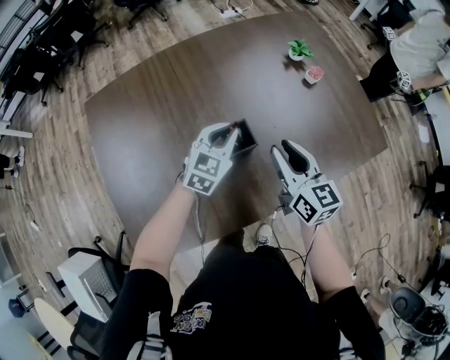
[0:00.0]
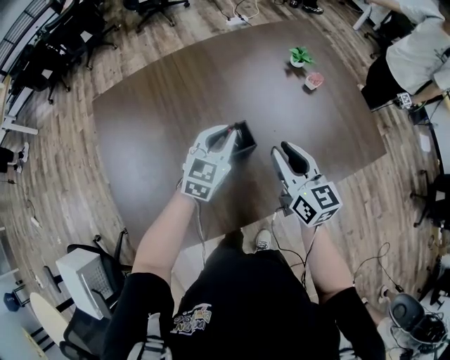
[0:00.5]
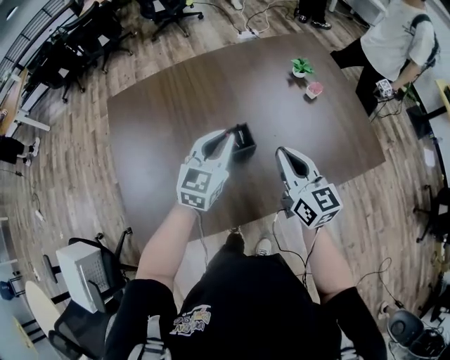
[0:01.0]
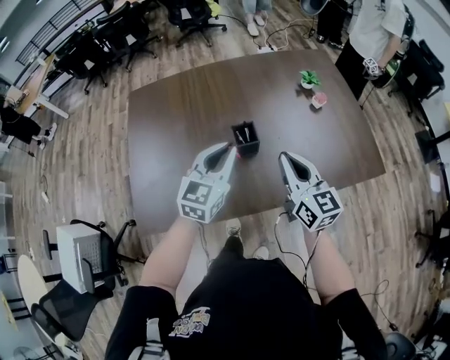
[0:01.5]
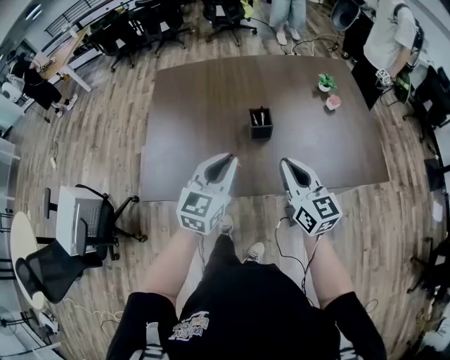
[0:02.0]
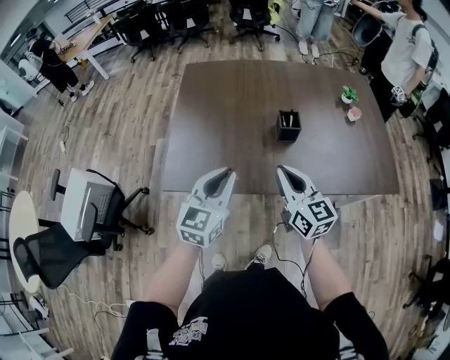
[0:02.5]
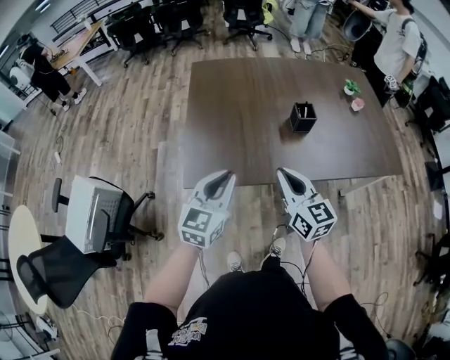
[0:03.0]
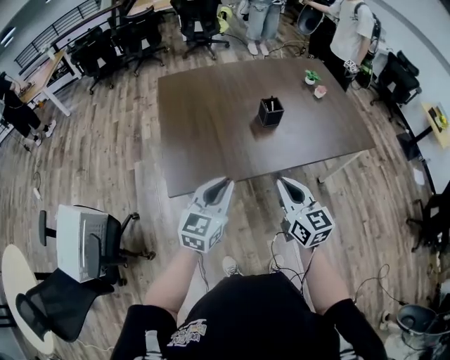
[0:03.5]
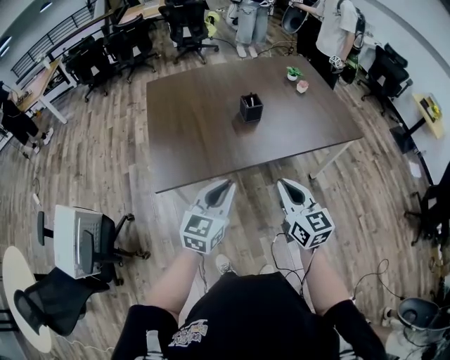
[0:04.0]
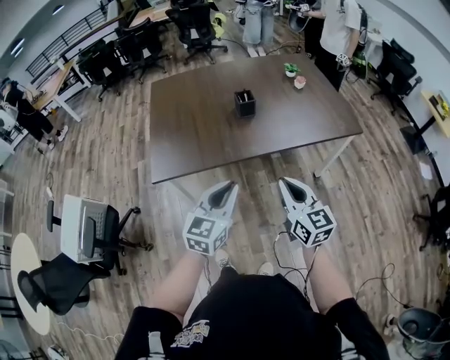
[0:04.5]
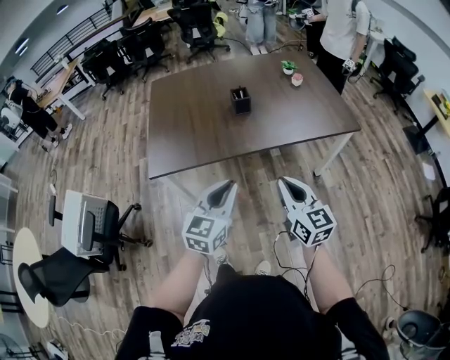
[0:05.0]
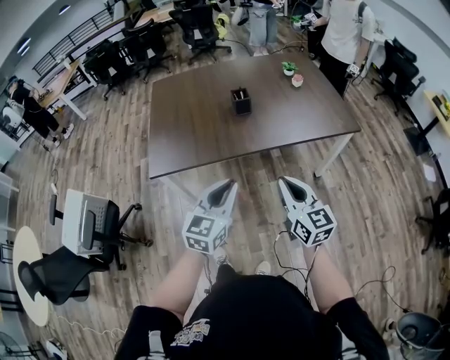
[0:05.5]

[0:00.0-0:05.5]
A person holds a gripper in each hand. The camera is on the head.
0:00.0 to 0:02.0: The left gripper travels backward and upward by roughly 30 cm, and swivels roughly 30 degrees. The right gripper is displaced backward and upward by roughly 20 cm, turns by approximately 20 degrees, and closes.
0:02.0 to 0:03.5: Both grippers move to the left and backward, about 25 cm.
0:03.5 to 0:05.5: The grippers both shift to the right and backward by roughly 25 cm.

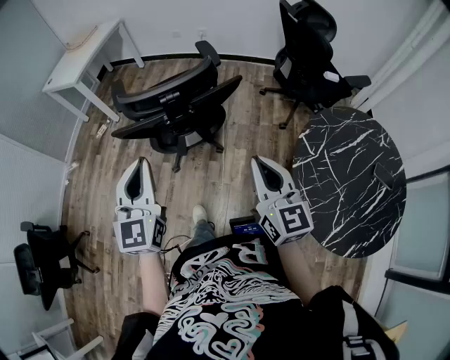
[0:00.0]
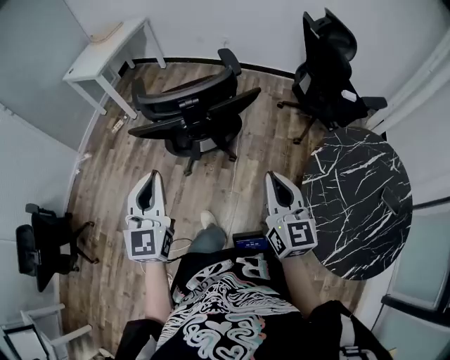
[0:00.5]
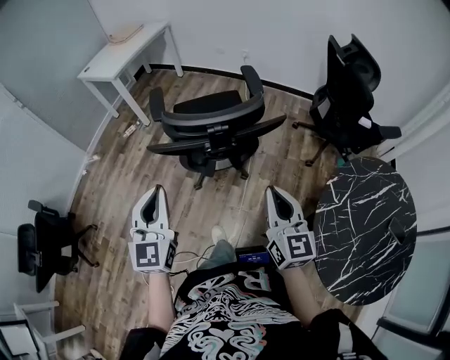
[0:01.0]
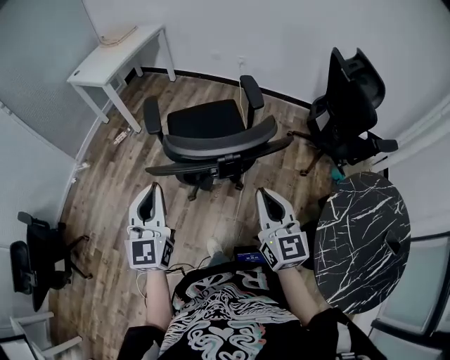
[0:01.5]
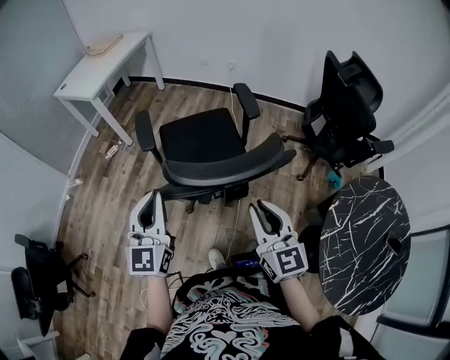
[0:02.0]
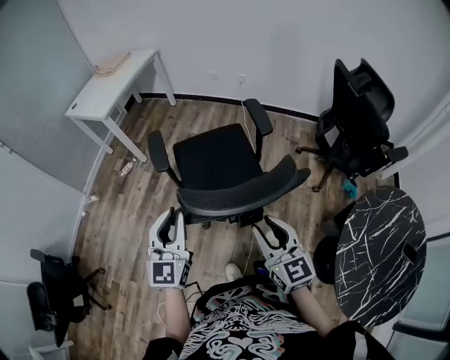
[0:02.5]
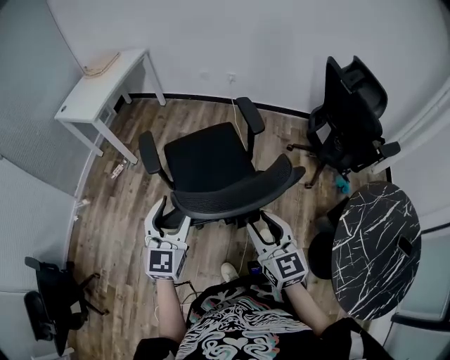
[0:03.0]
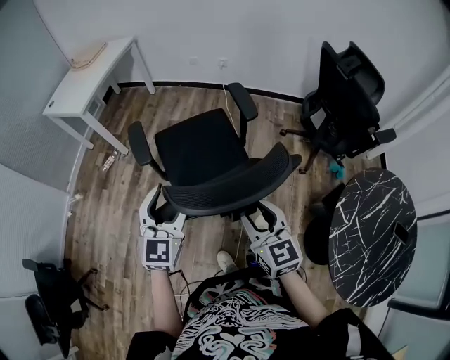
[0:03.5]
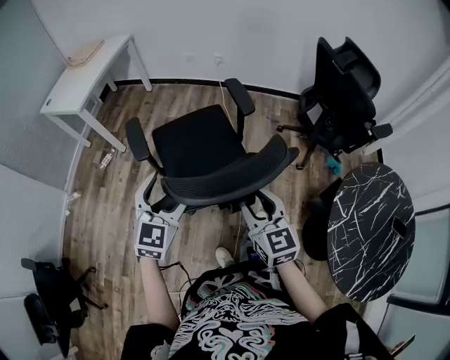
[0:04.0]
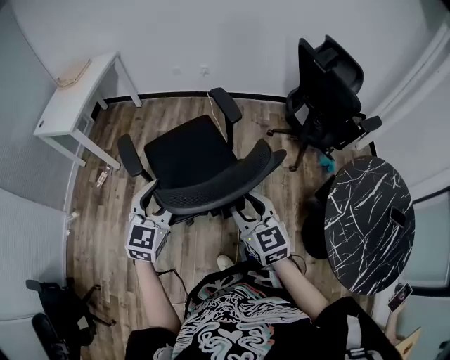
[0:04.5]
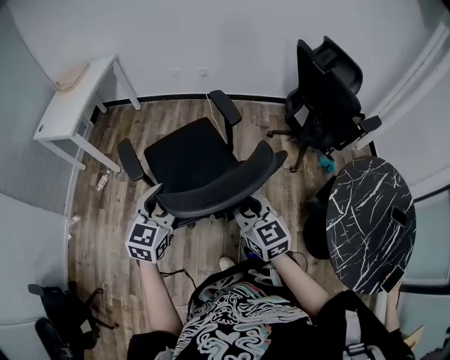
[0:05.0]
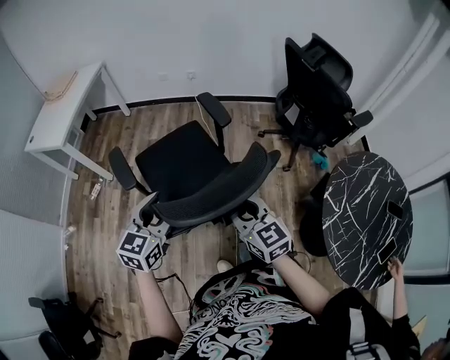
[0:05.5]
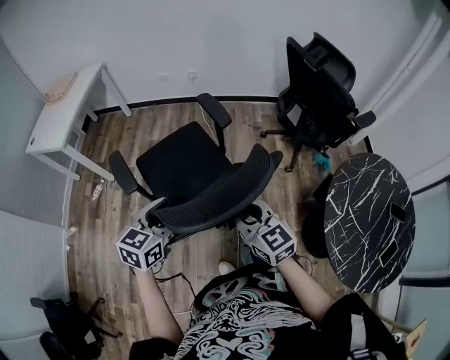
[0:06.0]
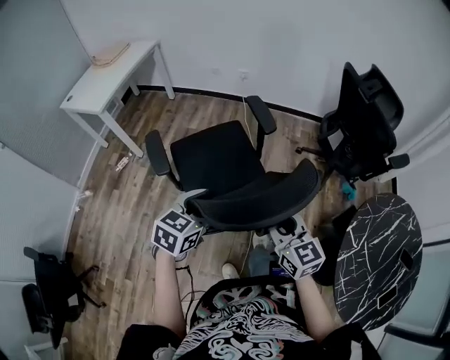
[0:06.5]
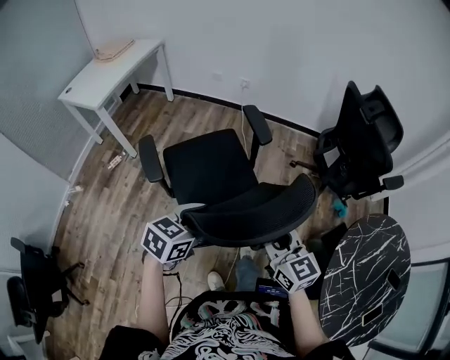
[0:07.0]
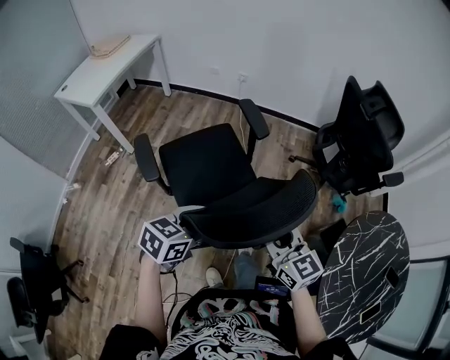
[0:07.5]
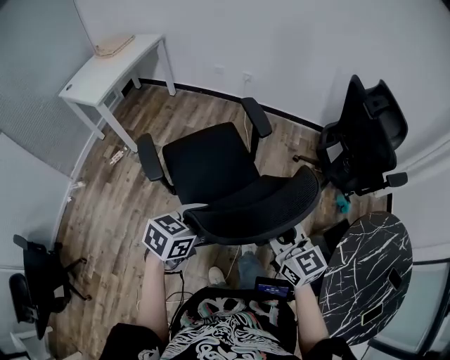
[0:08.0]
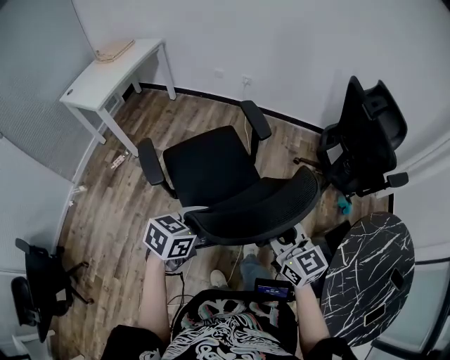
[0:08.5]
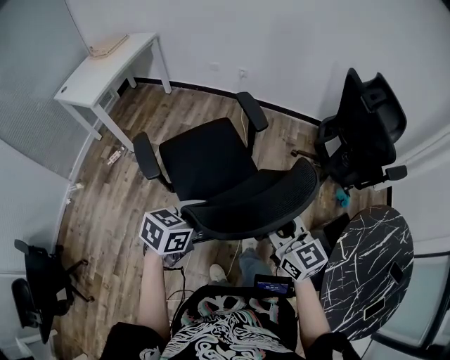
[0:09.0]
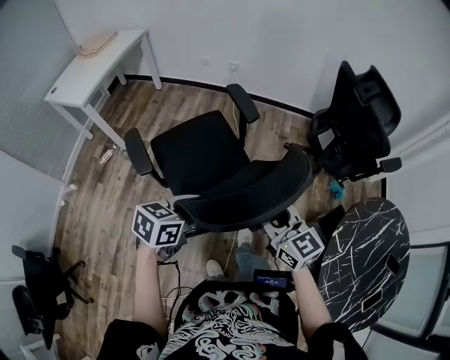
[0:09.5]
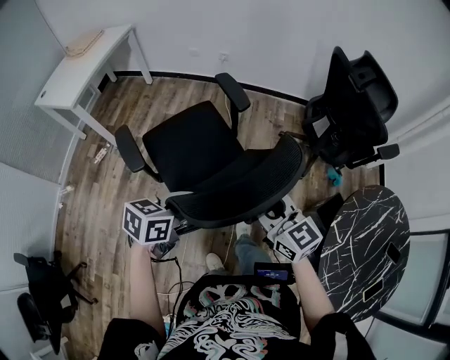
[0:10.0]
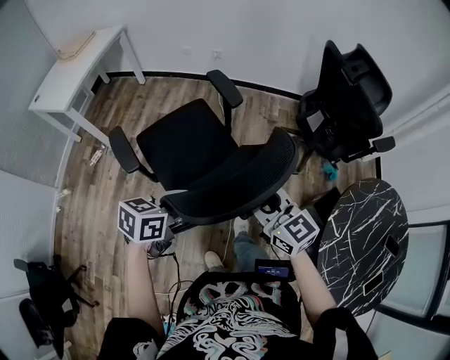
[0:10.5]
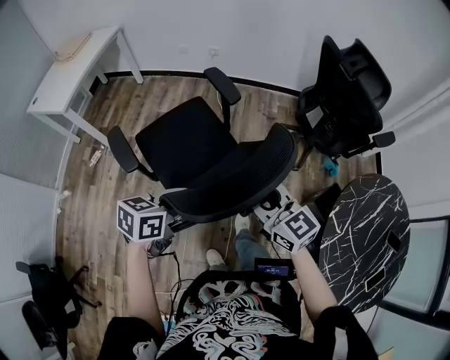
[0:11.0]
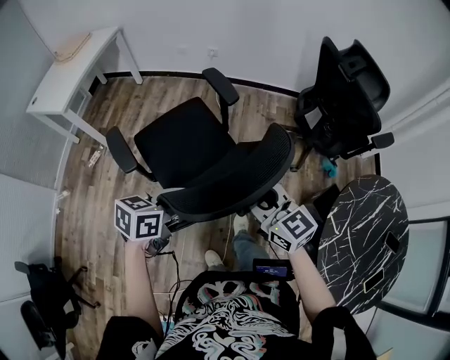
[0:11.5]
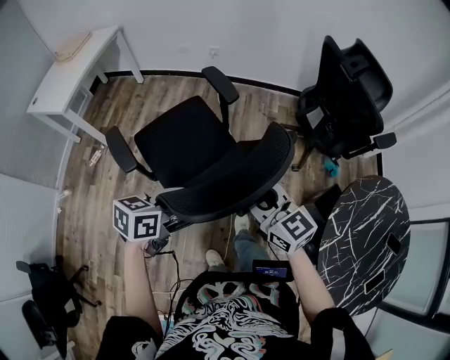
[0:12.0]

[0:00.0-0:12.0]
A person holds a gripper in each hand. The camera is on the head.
0:00.0 to 0:02.0: The grippers both shift forward and to the left by roughly 20 cm.
0:02.0 to 0:04.0: The left gripper travels forward and downward by about 10 cm, swivels roughly 30 degrees, and opens; the right gripper moves forward, approximately 5 cm.
0:04.0 to 0:06.0: The left gripper changes place by roughly 5 cm, and swivels roughly 30 degrees.
0:06.0 to 0:08.0: The left gripper shifts by approximately 5 cm.
0:08.0 to 0:12.0: There are only small adjustments of the grippers.

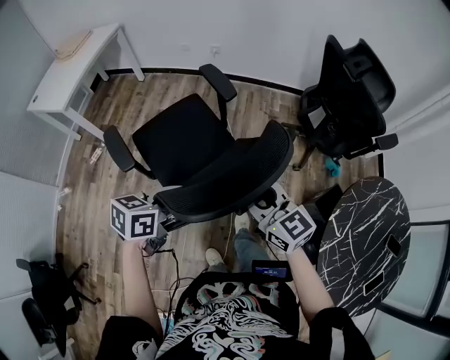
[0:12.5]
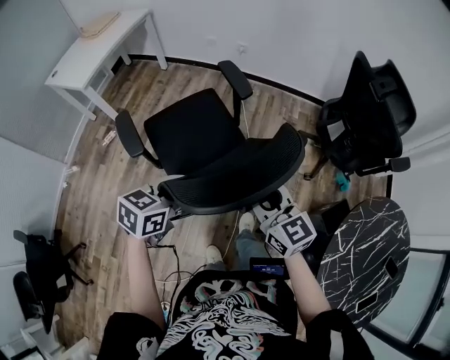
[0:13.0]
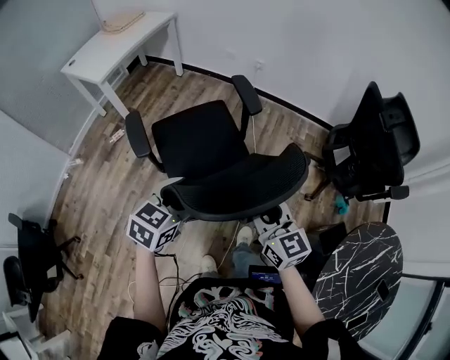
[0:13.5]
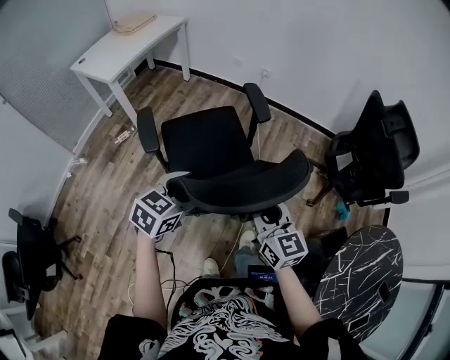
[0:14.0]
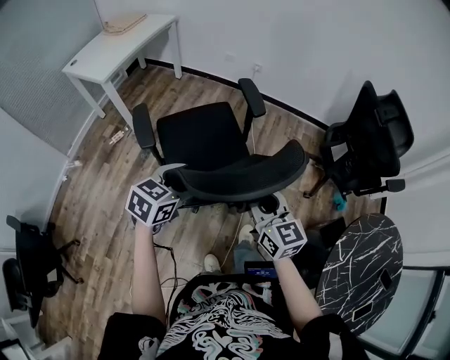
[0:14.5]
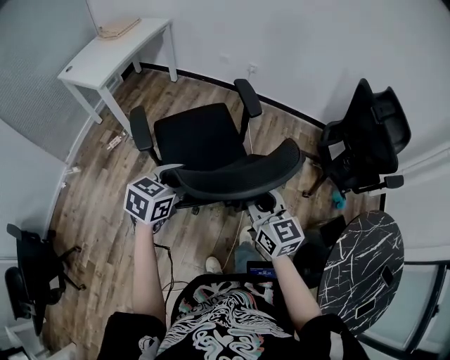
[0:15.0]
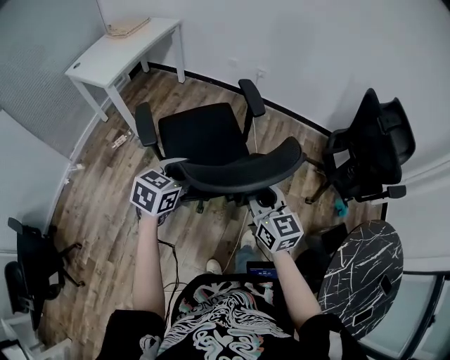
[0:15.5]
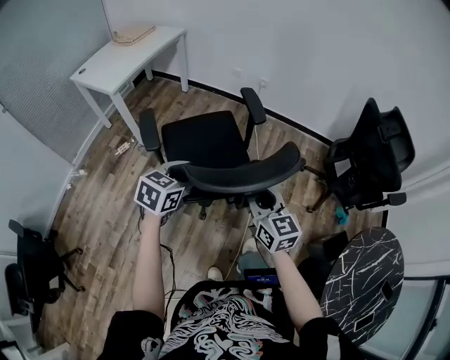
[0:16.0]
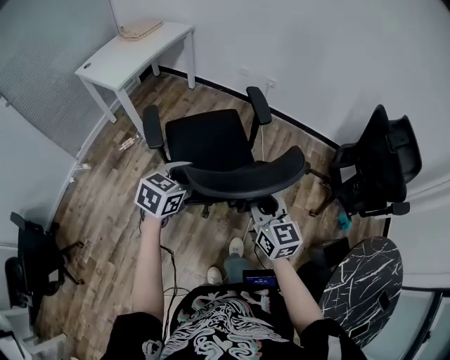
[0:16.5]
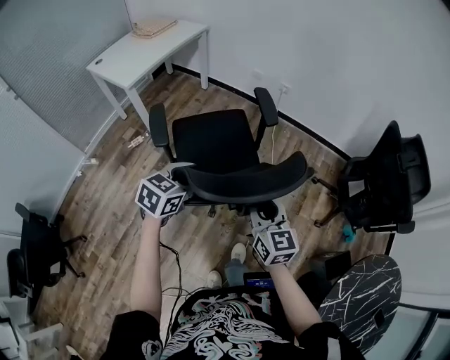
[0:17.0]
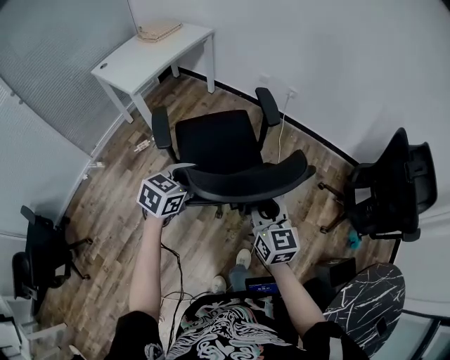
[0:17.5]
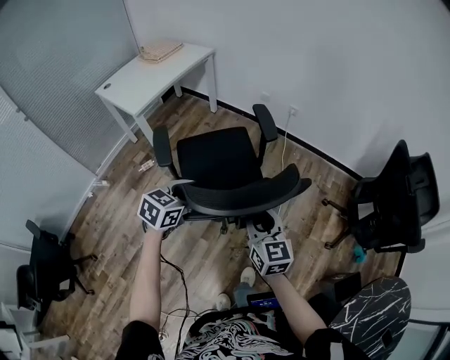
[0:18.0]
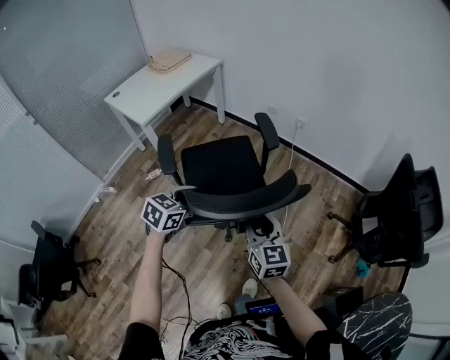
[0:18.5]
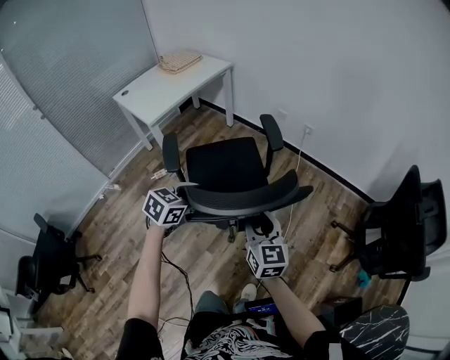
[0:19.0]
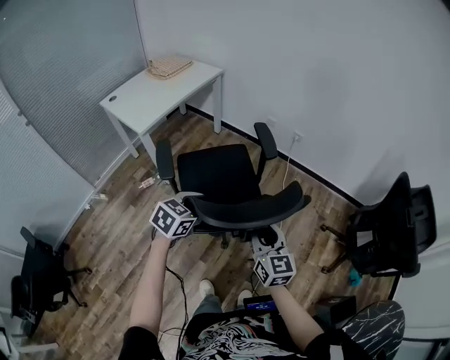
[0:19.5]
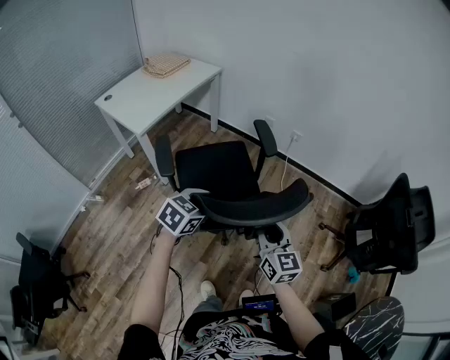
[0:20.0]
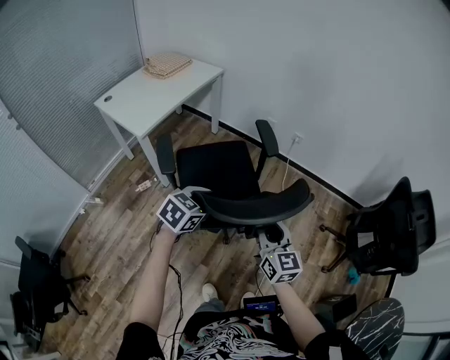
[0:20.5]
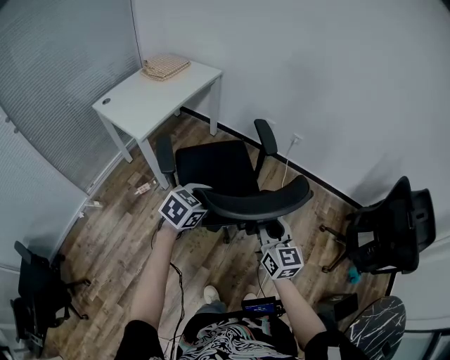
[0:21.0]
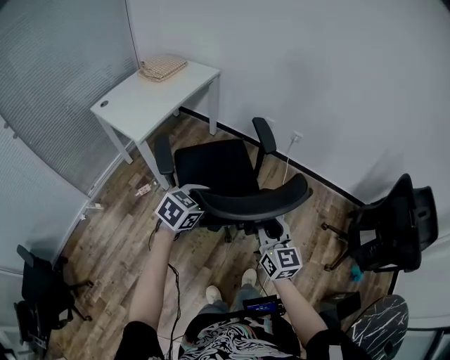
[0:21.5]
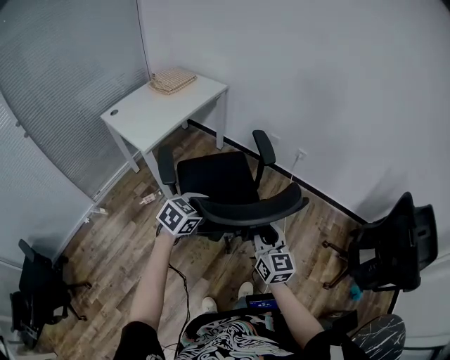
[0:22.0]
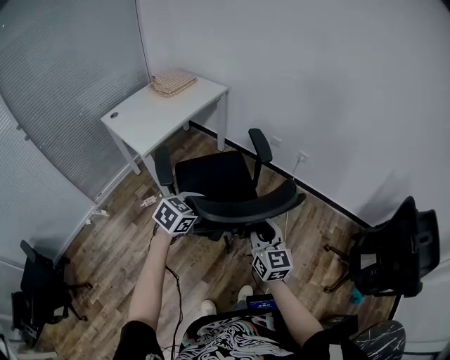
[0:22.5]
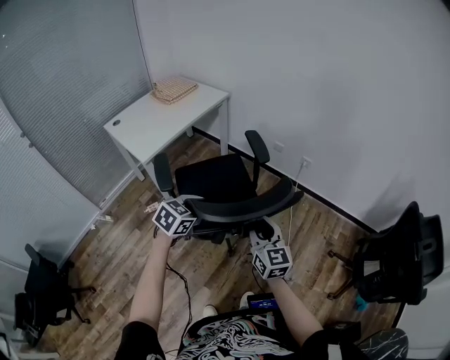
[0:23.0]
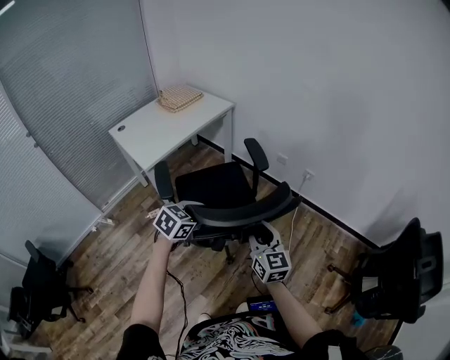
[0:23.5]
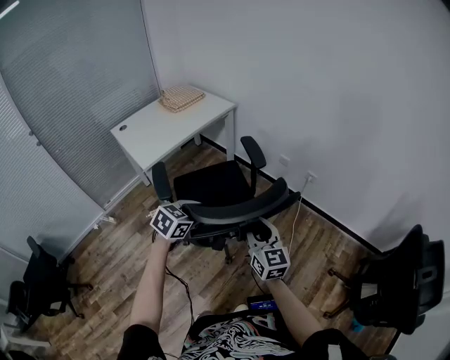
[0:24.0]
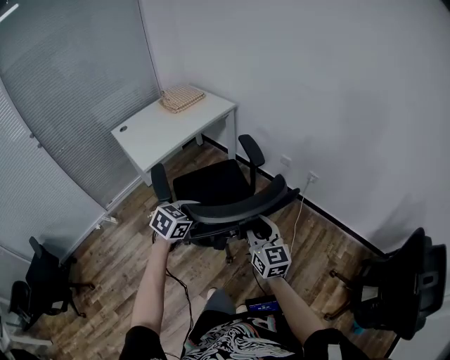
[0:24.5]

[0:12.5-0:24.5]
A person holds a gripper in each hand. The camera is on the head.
0:12.5 to 0:14.5: The two grippers go some 10 cm to the left. The left gripper changes its angle by roughly 20 degrees.
0:14.5 to 0:16.5: The two grippers go some 5 cm forward.
0:16.5 to 0:18.5: Both grippers travel together forward and to the left, roughly 15 cm.
0:18.5 to 0:20.5: The left gripper moves forward and to the left, roughly 10 cm, while the right gripper goes some 10 cm to the left and forward.
0:20.5 to 0:22.5: The grippers both shift forward by approximately 5 cm.
0:22.5 to 0:24.5: Both grippers travel together forward, some 10 cm.
